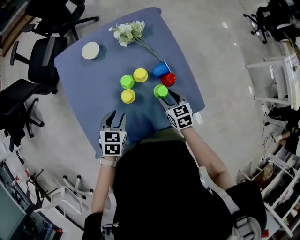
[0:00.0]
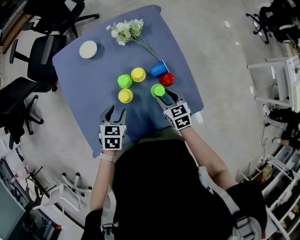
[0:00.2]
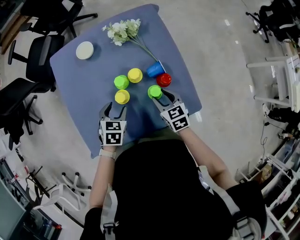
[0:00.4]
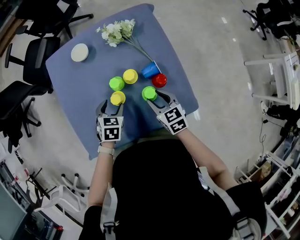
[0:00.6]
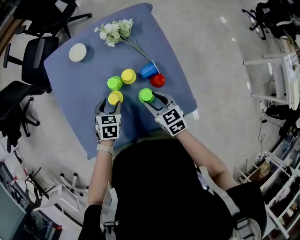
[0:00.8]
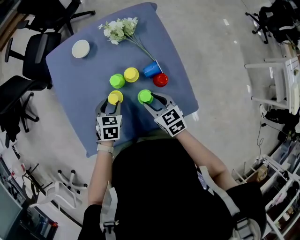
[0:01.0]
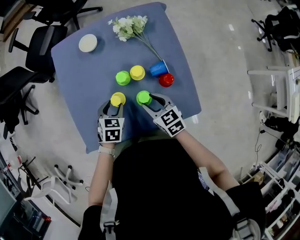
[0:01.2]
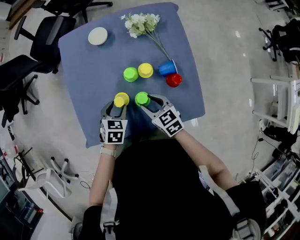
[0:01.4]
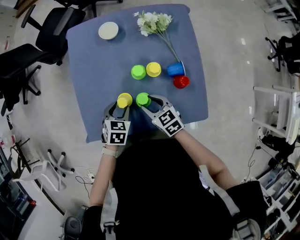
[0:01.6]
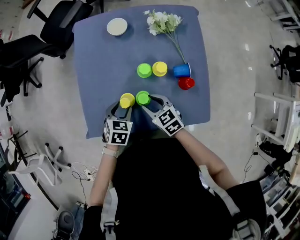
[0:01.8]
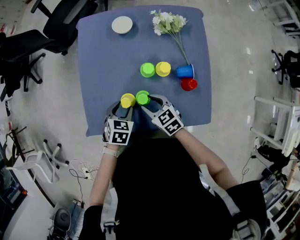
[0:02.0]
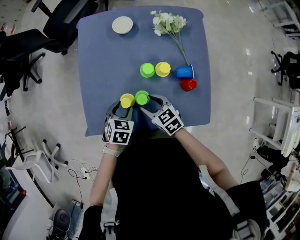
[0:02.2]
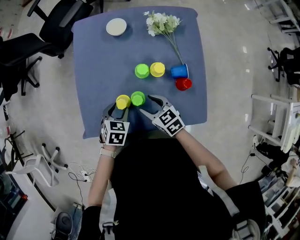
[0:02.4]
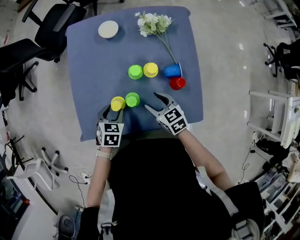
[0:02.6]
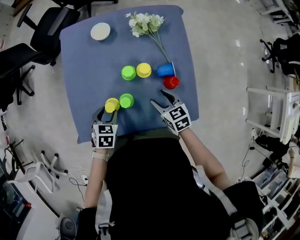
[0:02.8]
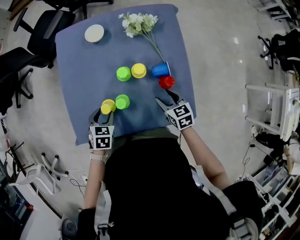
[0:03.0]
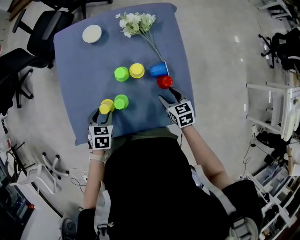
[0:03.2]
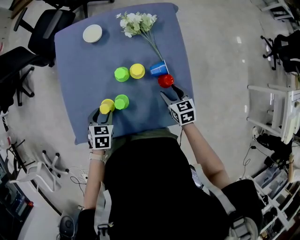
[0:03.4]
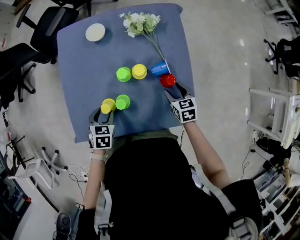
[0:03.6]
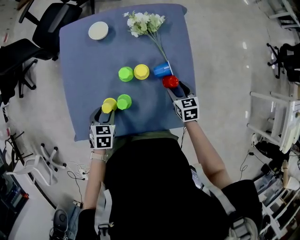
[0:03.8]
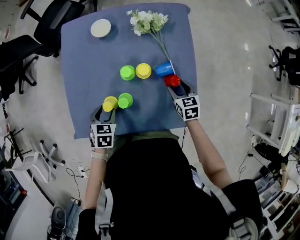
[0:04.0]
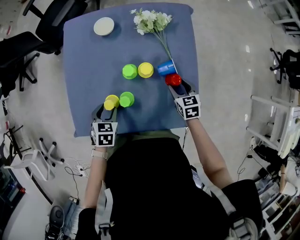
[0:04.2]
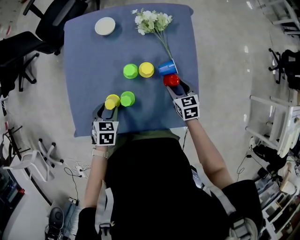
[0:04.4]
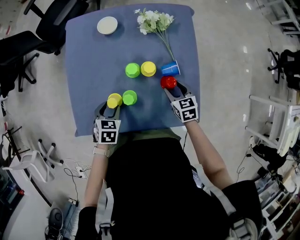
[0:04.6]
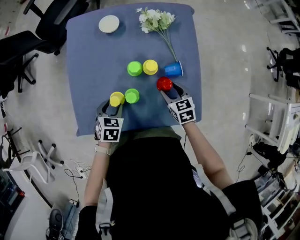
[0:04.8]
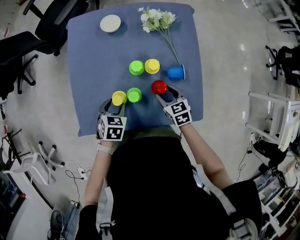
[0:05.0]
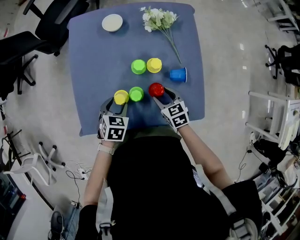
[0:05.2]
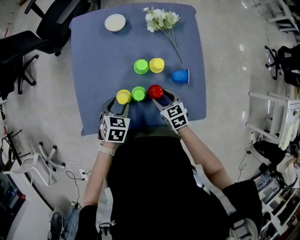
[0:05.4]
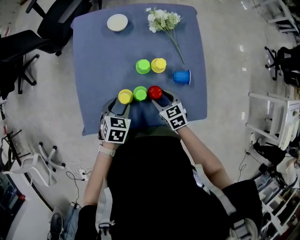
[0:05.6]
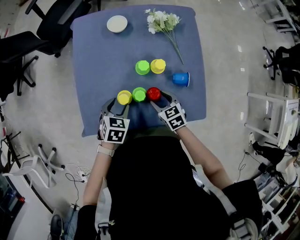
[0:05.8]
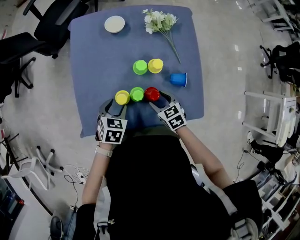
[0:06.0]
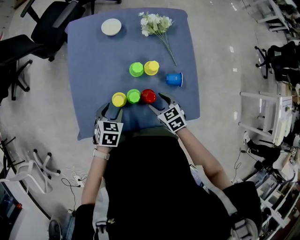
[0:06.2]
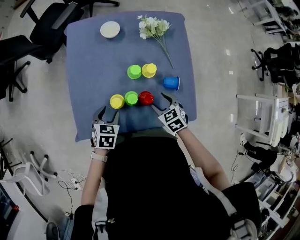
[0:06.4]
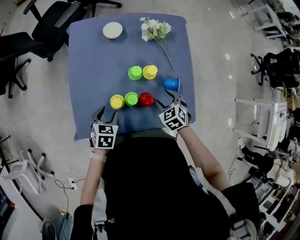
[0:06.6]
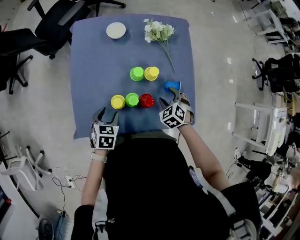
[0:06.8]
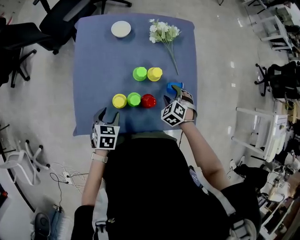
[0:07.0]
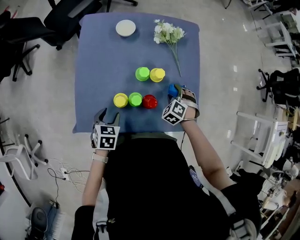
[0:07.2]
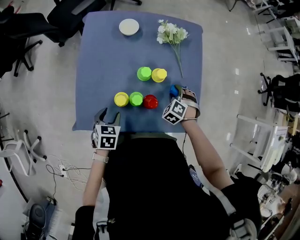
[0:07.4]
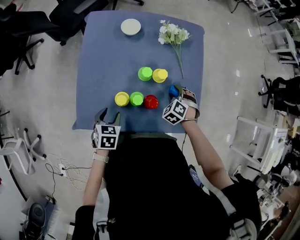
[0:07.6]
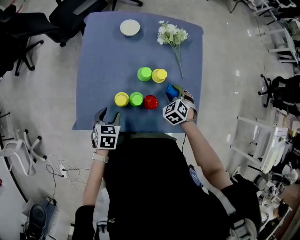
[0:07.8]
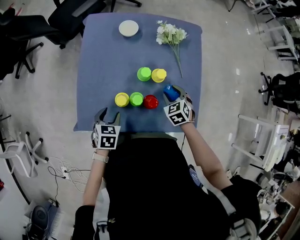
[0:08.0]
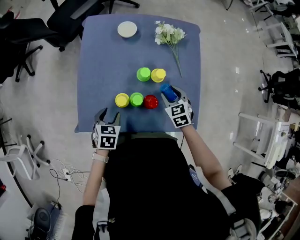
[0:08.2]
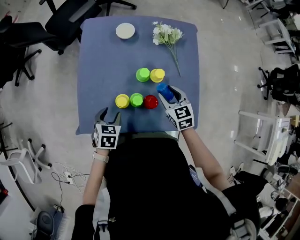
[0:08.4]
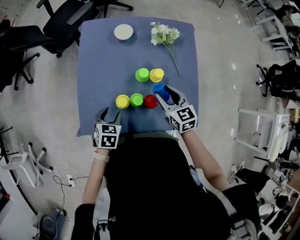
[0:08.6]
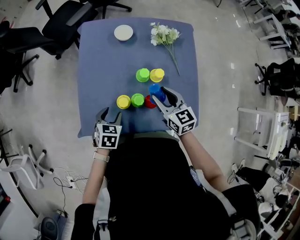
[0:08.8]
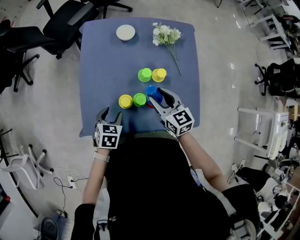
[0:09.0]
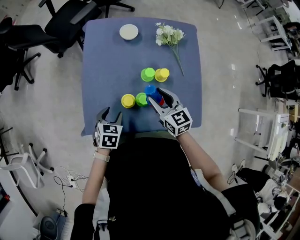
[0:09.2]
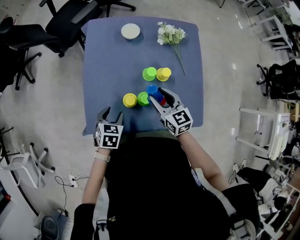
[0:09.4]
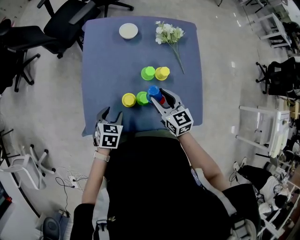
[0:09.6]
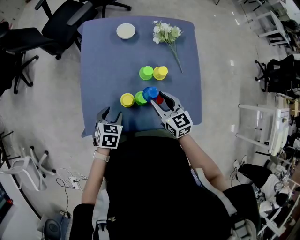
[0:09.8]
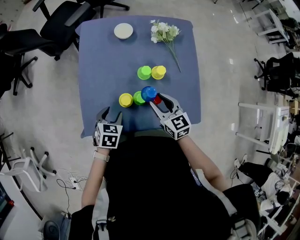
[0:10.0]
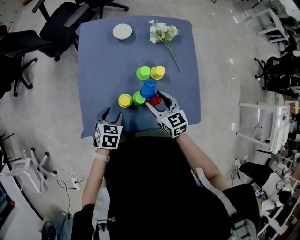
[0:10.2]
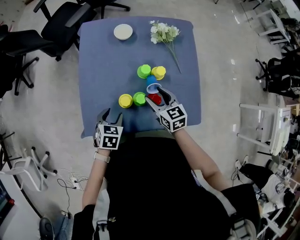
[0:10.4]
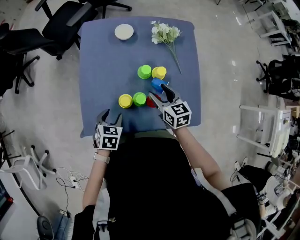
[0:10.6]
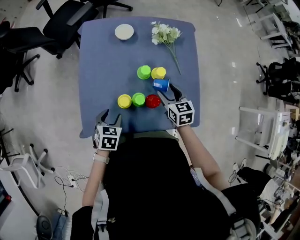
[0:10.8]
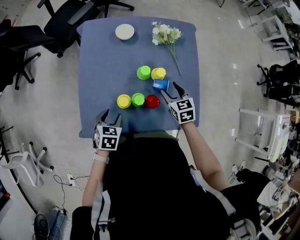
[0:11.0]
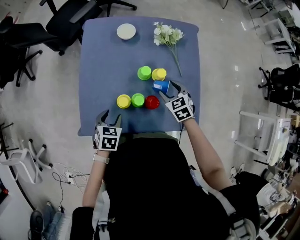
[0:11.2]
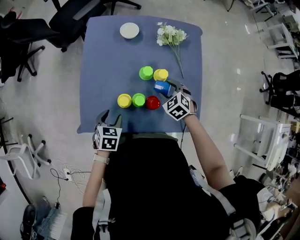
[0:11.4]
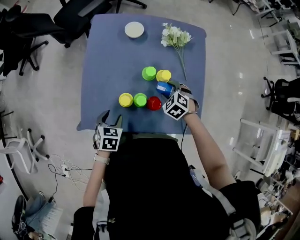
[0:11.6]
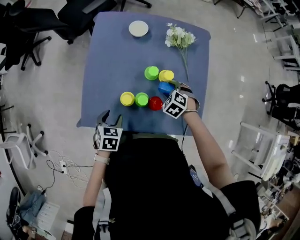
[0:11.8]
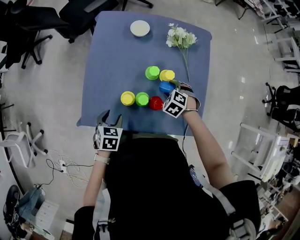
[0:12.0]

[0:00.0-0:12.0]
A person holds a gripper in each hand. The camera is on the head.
0:00.0 to 0:01.6: The right gripper shifts by roughly 15 cm, and swivels about 30 degrees.
0:01.6 to 0:03.0: The right gripper moves to the right, roughly 15 cm.
0:03.0 to 0:04.4: The right gripper goes some 5 cm forward.
0:04.4 to 0:06.0: The right gripper travels to the left and backward by roughly 15 cm.
0:06.0 to 0:07.6: The right gripper moves forward and to the right, some 10 cm, and twists roughly 40 degrees counterclockwise, seen from behind.
0:07.6 to 0:09.0: The right gripper travels upward and to the left by roughly 20 cm, and angles its fingers upward, by about 40 degrees.
0:09.0 to 0:10.4: There are only small adjustments of the grippers.
0:10.4 to 0:12.0: The right gripper goes approximately 10 cm downward and to the right, and angles its fingers downward, by some 40 degrees.

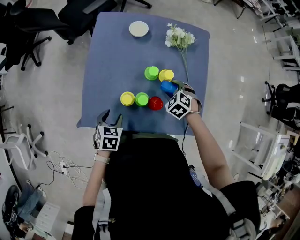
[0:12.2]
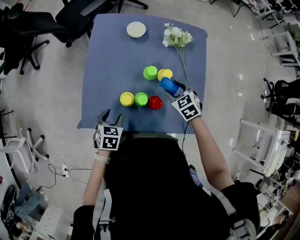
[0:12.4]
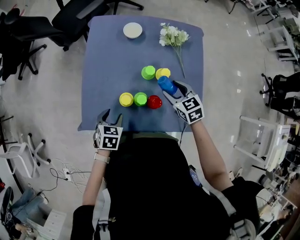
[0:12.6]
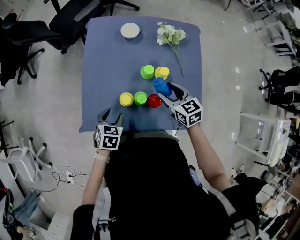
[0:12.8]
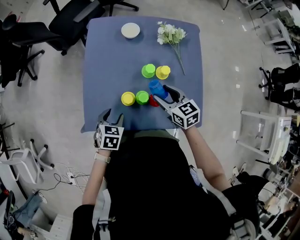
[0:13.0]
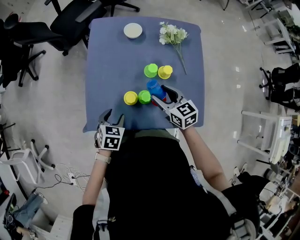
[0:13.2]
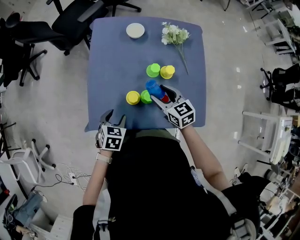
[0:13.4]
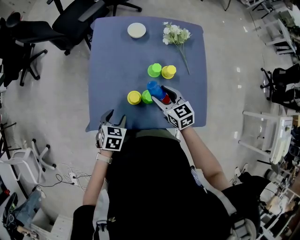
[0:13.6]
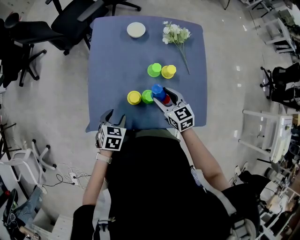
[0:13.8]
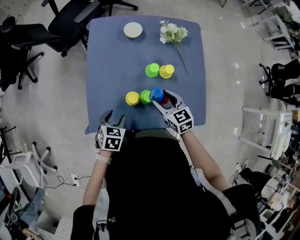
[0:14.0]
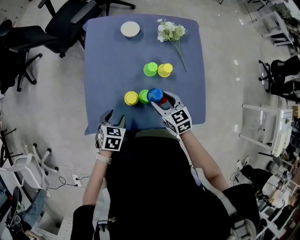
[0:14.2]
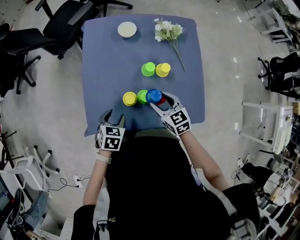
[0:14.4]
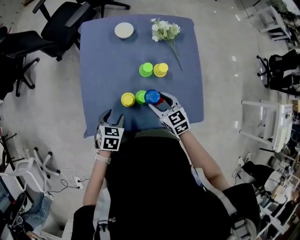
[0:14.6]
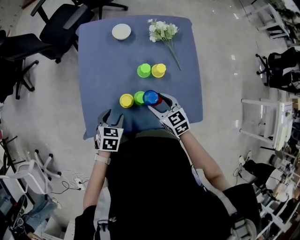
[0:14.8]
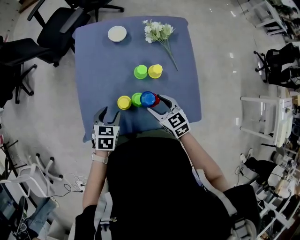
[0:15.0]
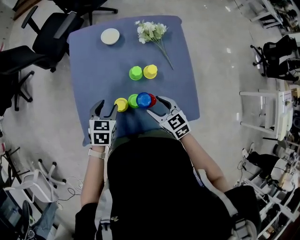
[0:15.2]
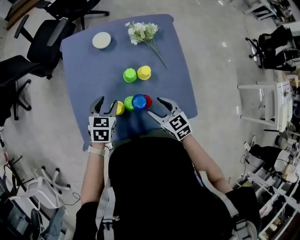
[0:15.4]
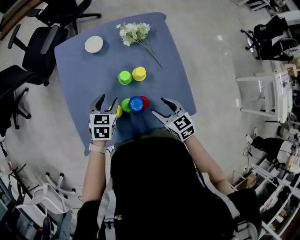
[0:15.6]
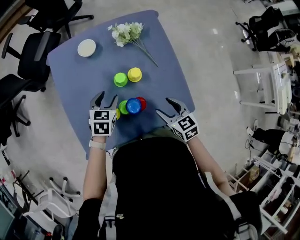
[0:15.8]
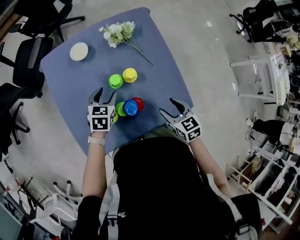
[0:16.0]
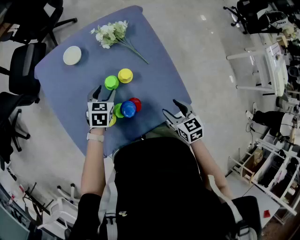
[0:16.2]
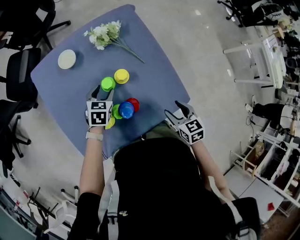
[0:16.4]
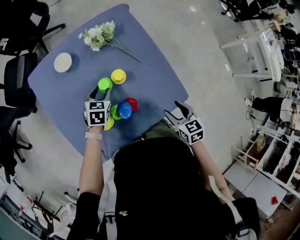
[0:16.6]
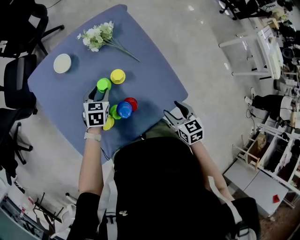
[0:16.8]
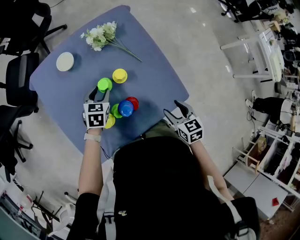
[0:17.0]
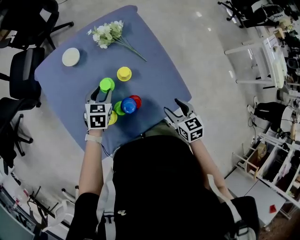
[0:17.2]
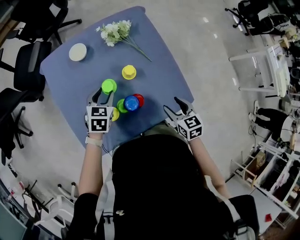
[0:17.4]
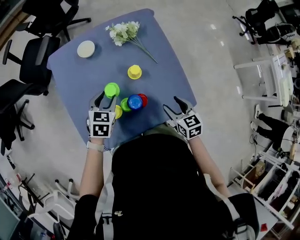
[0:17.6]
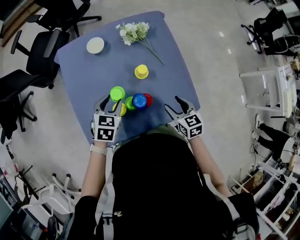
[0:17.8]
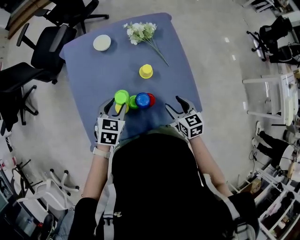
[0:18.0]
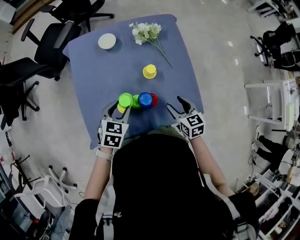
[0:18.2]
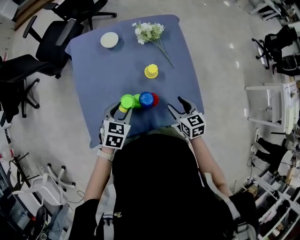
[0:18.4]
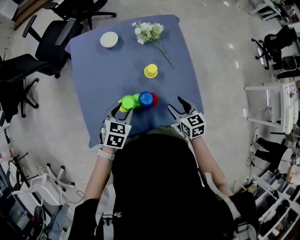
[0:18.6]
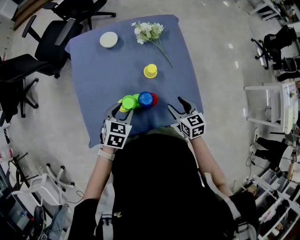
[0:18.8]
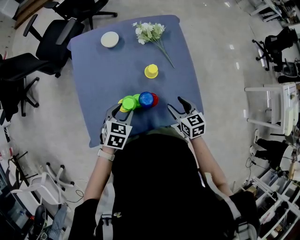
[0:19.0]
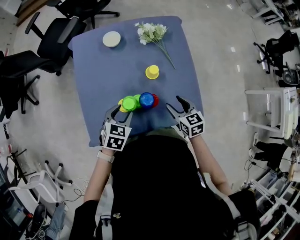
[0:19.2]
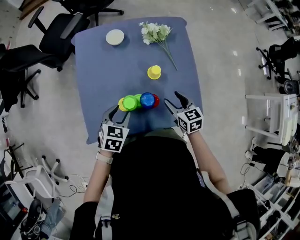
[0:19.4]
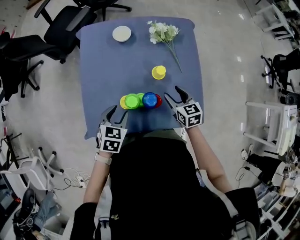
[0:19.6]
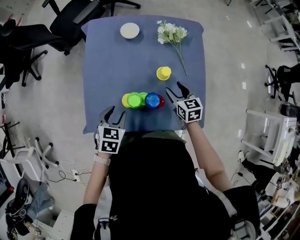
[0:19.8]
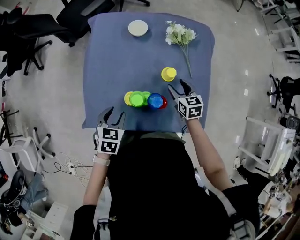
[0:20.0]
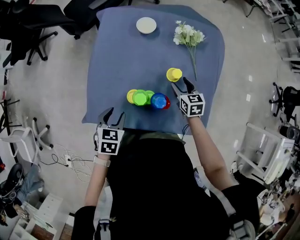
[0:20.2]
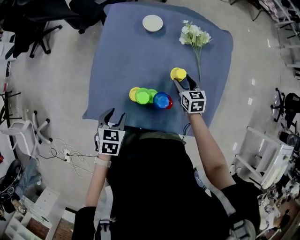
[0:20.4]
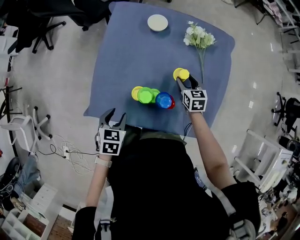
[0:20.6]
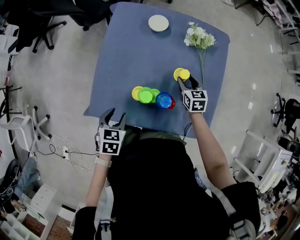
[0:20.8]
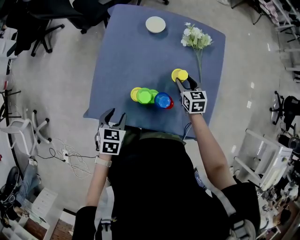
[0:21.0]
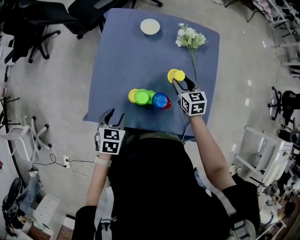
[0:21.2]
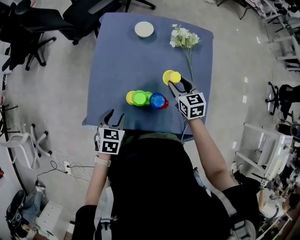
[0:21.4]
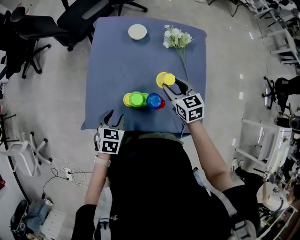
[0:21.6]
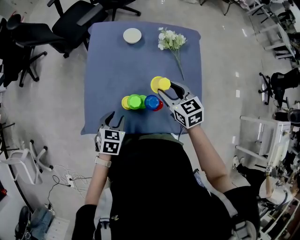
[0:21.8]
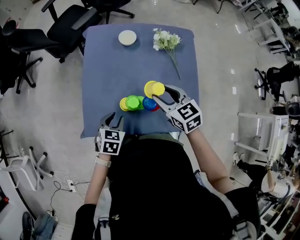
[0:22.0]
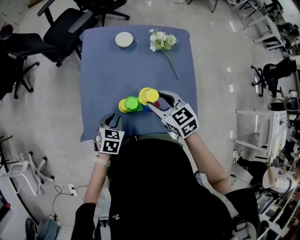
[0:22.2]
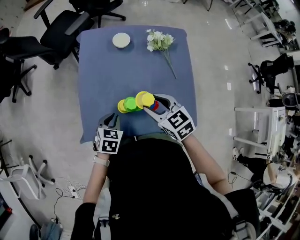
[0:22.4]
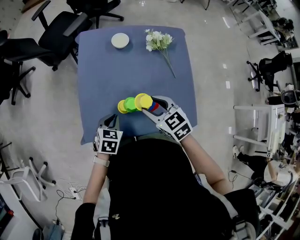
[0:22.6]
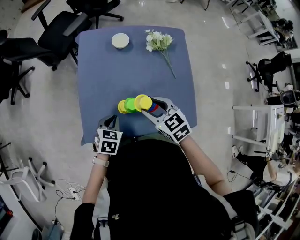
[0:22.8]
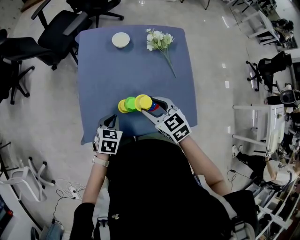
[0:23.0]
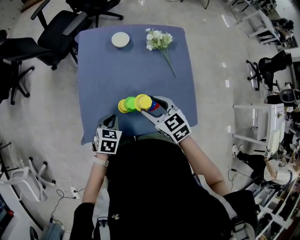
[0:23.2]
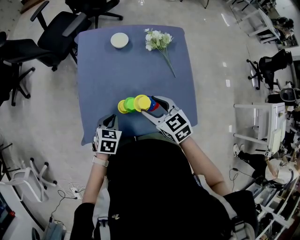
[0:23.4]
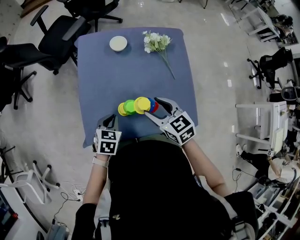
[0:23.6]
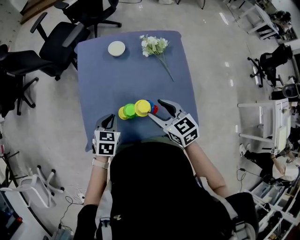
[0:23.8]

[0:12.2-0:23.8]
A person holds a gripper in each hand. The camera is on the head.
0:12.2 to 0:13.6: The right gripper heads to the left and upward, covering about 15 cm, and angles its fingers upward, by some 40 degrees.
0:13.6 to 0:15.0: The right gripper moves about 5 cm. The left gripper is displaced forward by about 5 cm.
0:15.0 to 0:16.6: The left gripper moves roughly 25 cm, and rotates about 20 degrees. The right gripper shifts by about 20 cm, and turns by some 40 degrees.
0:16.6 to 0:18.0: The right gripper travels to the left by about 5 cm. Meanwhile the left gripper moves backward and upward, roughly 15 cm.
0:18.0 to 0:19.4: The left gripper goes approximately 5 cm backward.
0:19.4 to 0:21.0: The right gripper moves forward and downward, roughly 15 cm. Meanwhile the left gripper goes roughly 10 cm to the left, and turns by approximately 30 degrees.
0:21.0 to 0:22.4: The left gripper closes. The right gripper goes some 25 cm upward, to the left and backward.
0:22.4 to 0:23.8: The left gripper shifts by about 5 cm.
